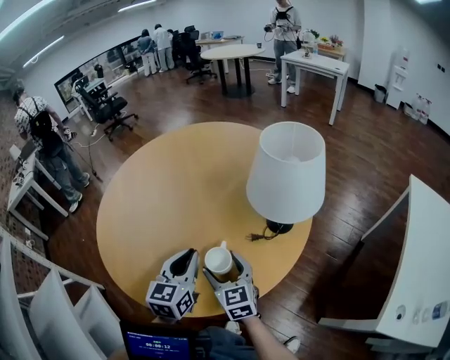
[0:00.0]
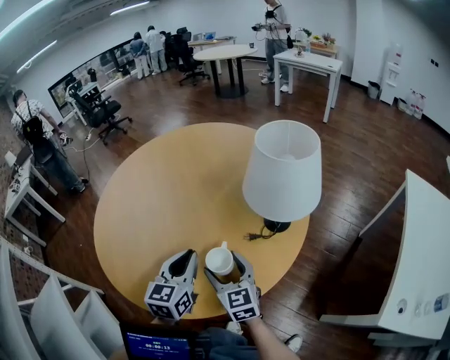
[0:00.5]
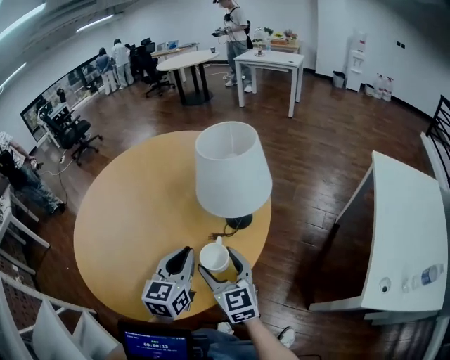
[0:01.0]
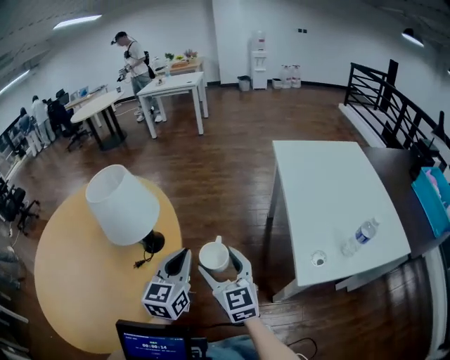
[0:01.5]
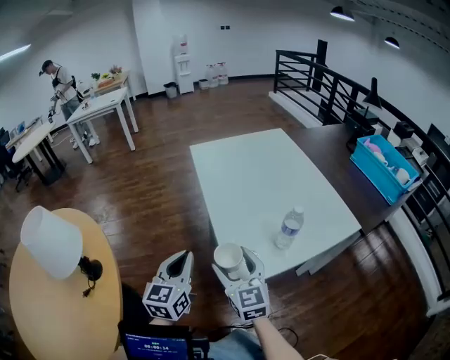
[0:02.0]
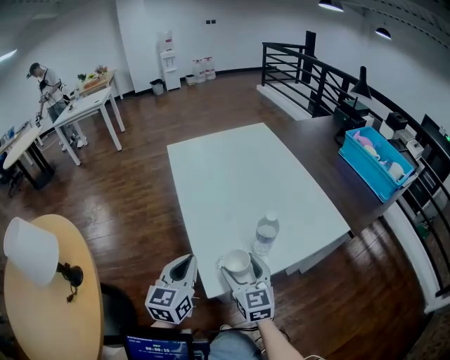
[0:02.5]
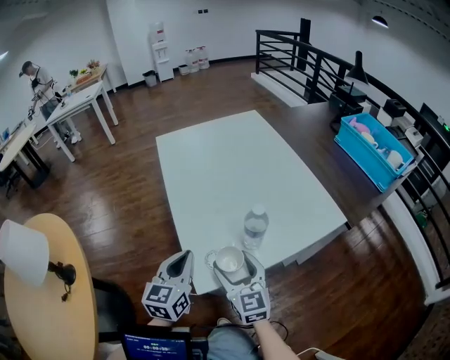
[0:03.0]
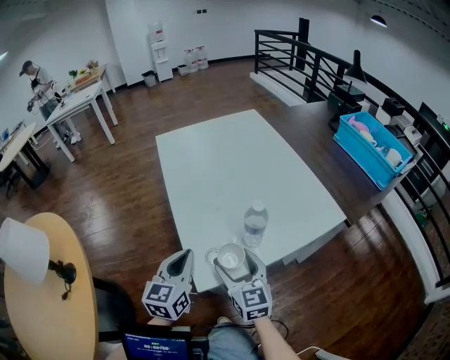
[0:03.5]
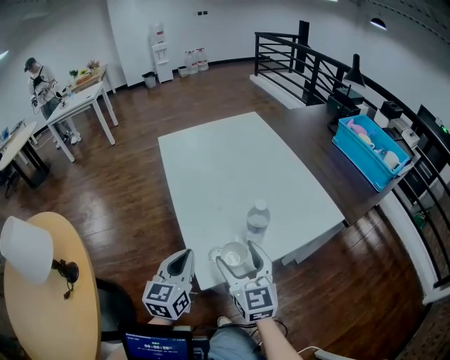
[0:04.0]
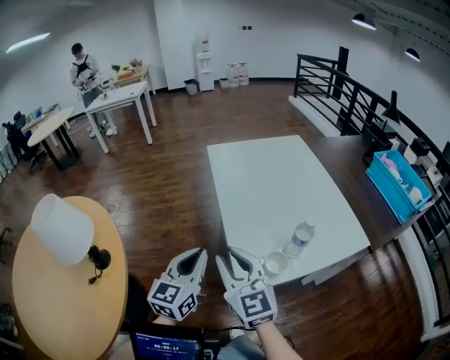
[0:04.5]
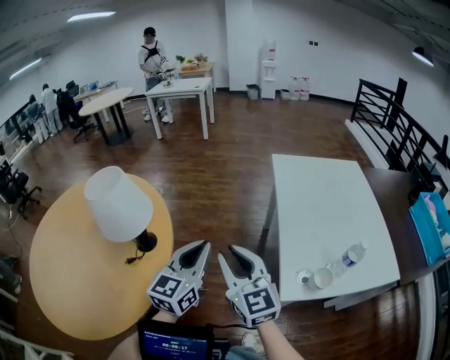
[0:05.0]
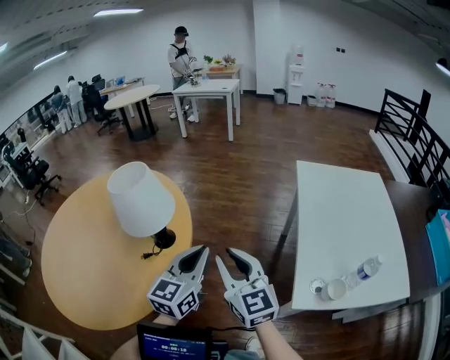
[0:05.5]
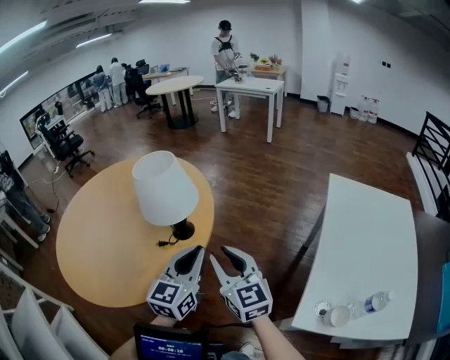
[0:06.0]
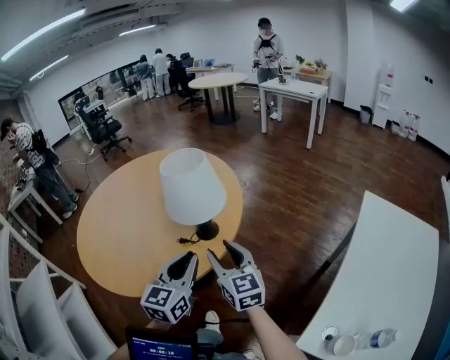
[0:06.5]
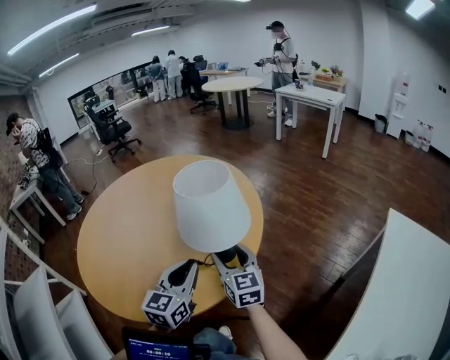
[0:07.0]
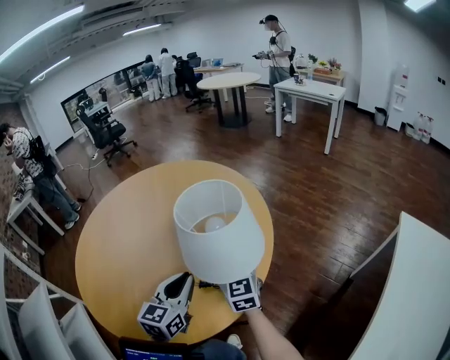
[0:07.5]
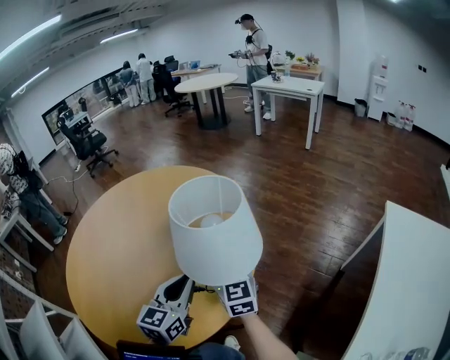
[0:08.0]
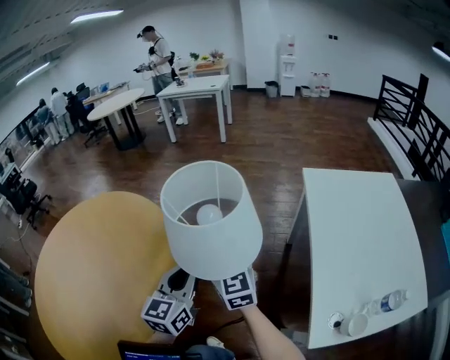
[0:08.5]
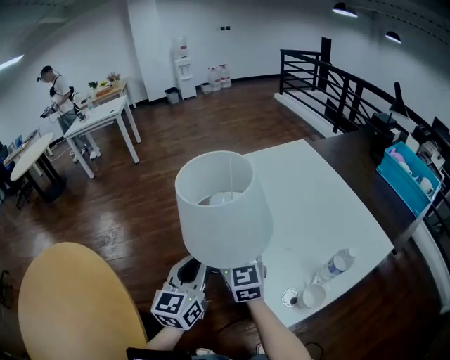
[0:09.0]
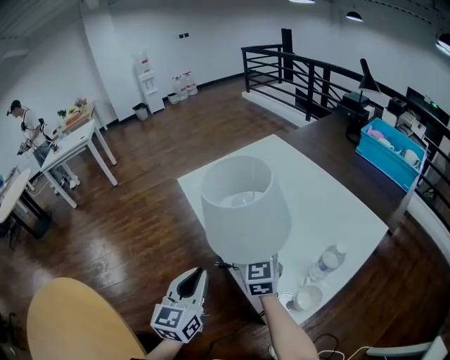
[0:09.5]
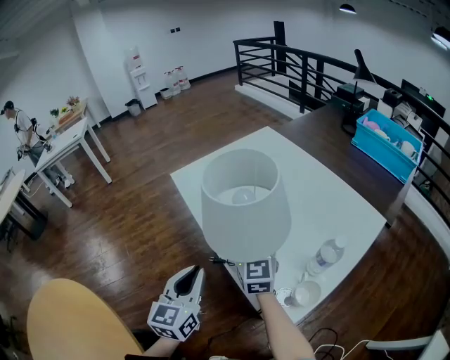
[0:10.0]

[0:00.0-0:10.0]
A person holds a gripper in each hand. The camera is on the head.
0.0 to 2.0 s: The pair of grippers is taken some 60 cm. The right gripper changes its angle by approximately 60 degrees. The left gripper rotates some 60 degrees.
2.0 to 4.0 s: Both grippers travel together to the right, approximately 10 cm.
4.0 to 6.0 s: The left gripper ends up some 40 cm from where it was, and turns by about 50 degrees, while the right gripper moves some 40 cm, swivels some 60 degrees, and closes.
6.0 to 8.0 s: The right gripper moves forward and to the left, approximately 25 cm. The left gripper goes about 20 cm forward, to the left and downward.
8.0 to 10.0 s: The two grippers travel together, some 60 cm. The left gripper swivels approximately 70 degrees; the right gripper rotates approximately 80 degrees.

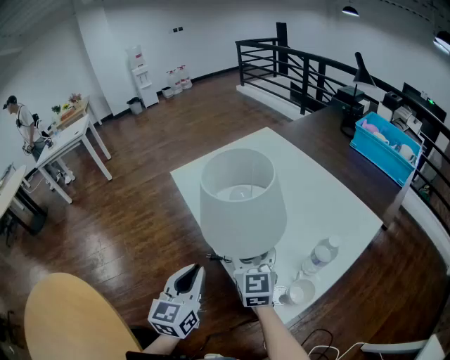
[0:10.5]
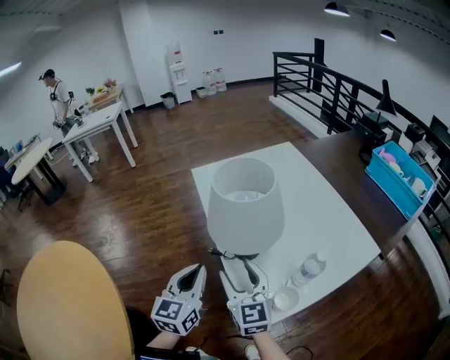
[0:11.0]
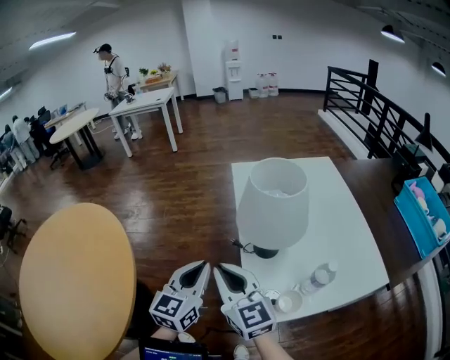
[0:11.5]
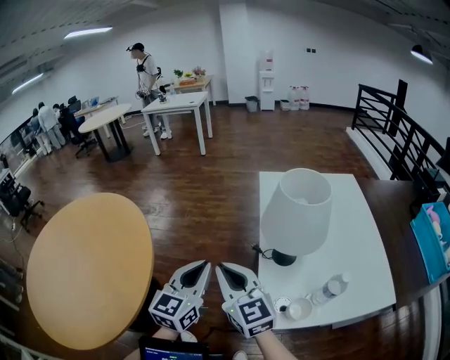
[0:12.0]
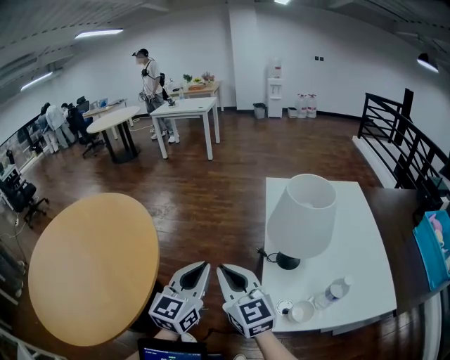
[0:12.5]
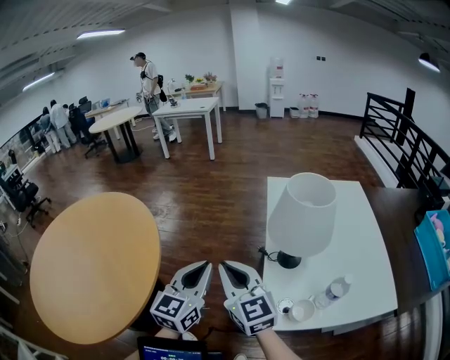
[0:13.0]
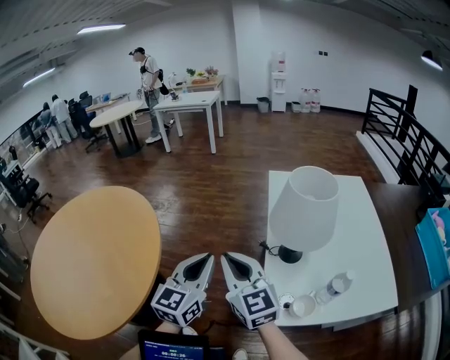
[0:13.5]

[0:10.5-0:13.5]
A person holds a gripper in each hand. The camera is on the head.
10.5 to 12.0 s: The right gripper changes place by about 25 cm, turns by approximately 60 degrees, and closes. The left gripper moves approximately 15 cm, and rotates some 30 degrees.
12.0 to 13.5 s: The grippers move only a little.

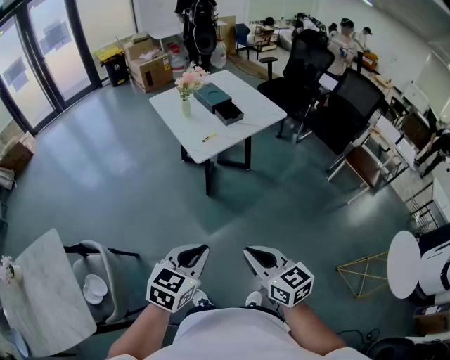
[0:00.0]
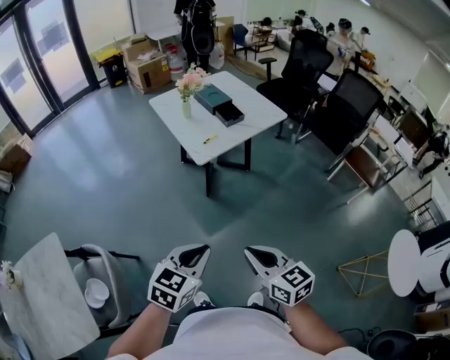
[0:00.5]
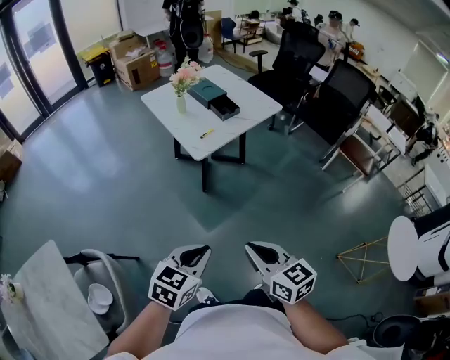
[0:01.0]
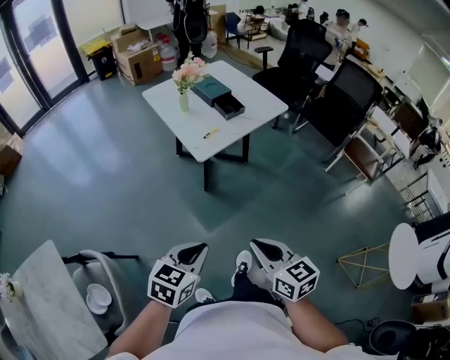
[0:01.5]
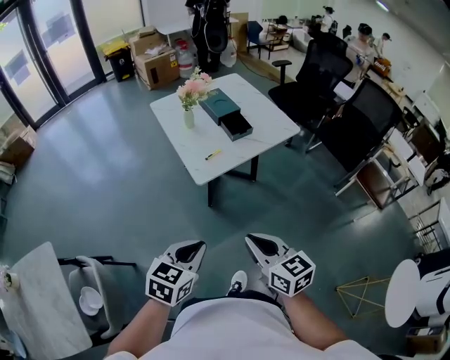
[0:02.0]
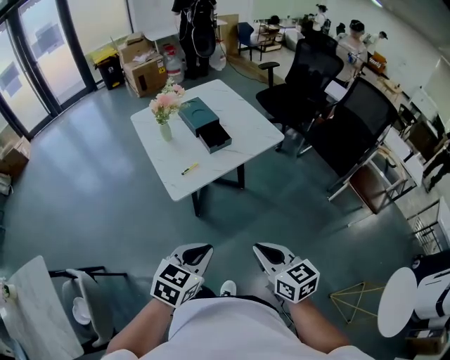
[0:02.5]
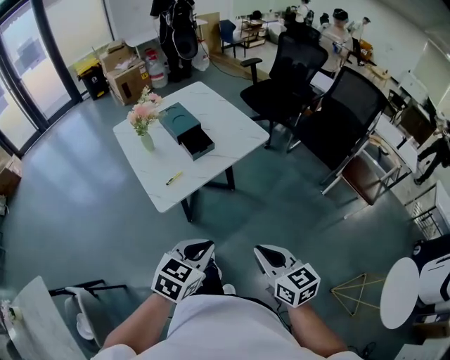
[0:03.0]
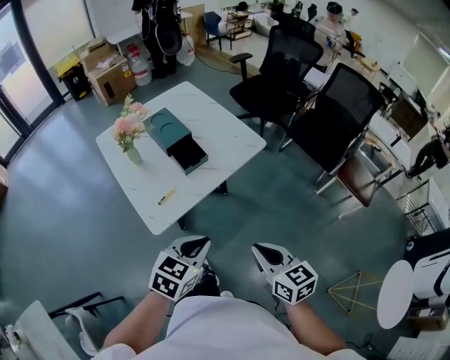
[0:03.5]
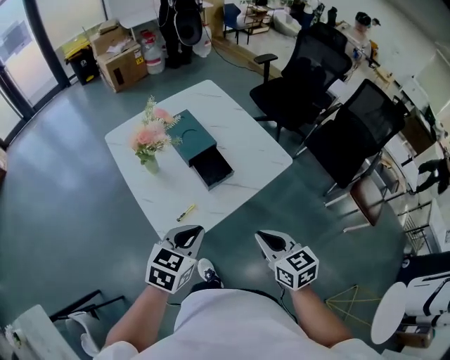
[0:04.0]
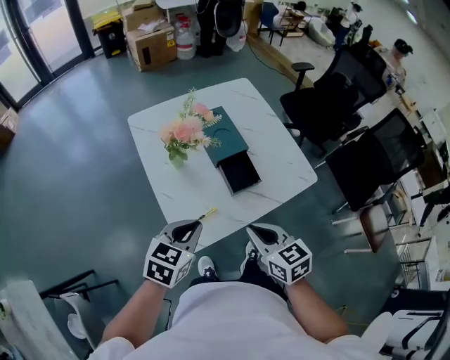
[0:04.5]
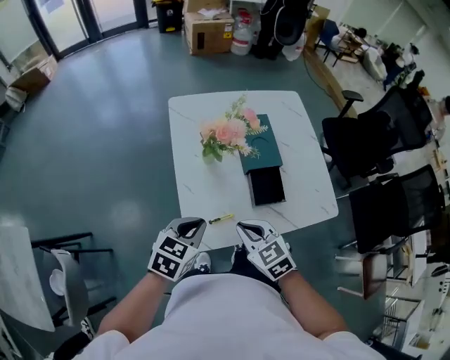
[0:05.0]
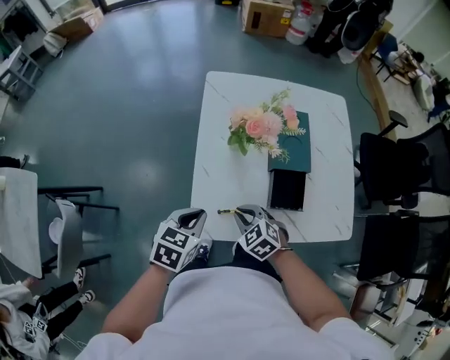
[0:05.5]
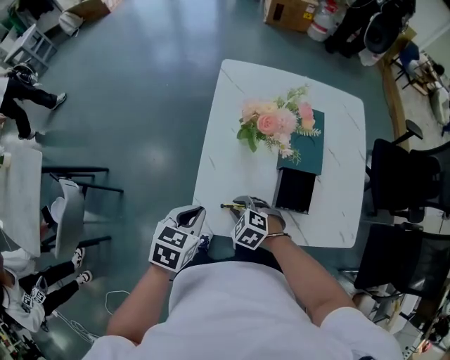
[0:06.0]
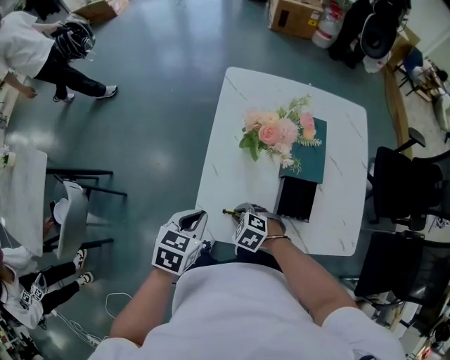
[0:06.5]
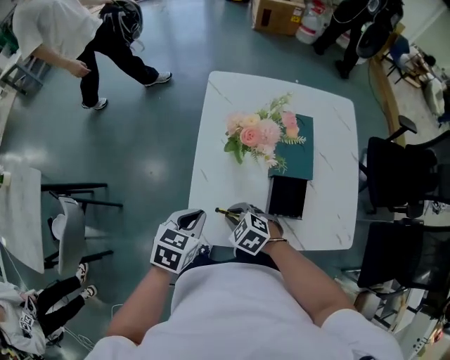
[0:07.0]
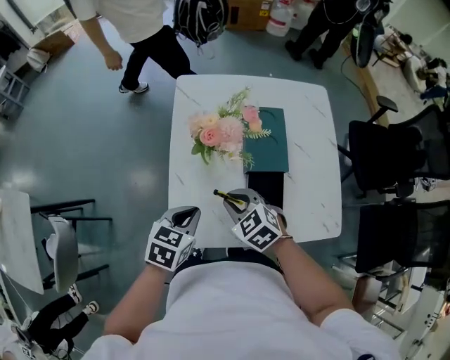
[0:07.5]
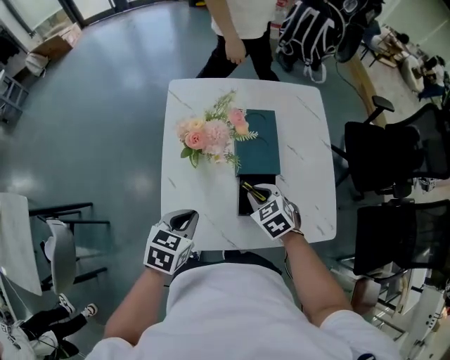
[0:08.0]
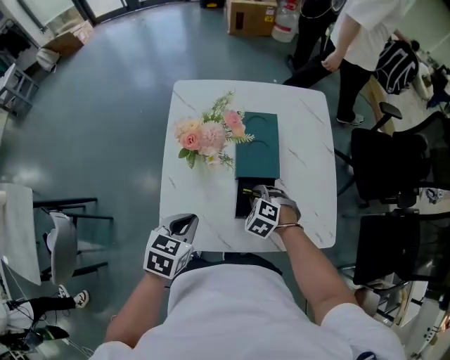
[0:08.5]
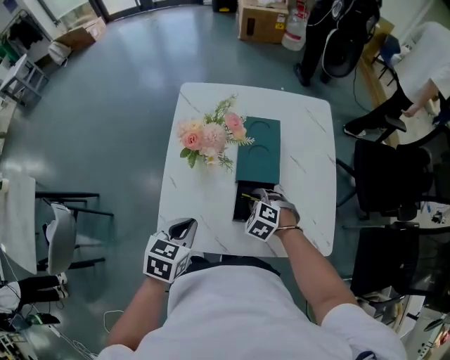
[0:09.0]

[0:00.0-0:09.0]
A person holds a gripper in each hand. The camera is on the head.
0.0 to 2.0 s: The grippers both shift forward by roughly 20 cm.
2.0 to 4.5 s: Both grippers are carried forward, some 40 cm.
4.5 to 7.0 s: The left gripper shifts about 10 cm downward, and changes its angle by approximately 40 degrees. Meanwhile the right gripper travels downward by some 15 cm, and rotates approximately 70 degrees.
7.0 to 9.0 s: The right gripper moves to the right and forward, some 20 cm, and rotates about 20 degrees. Meanwhile the left gripper is displaced to the right by some 10 cm.

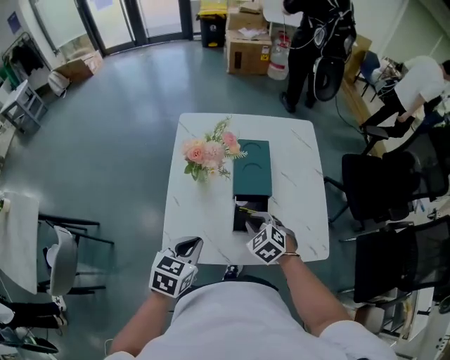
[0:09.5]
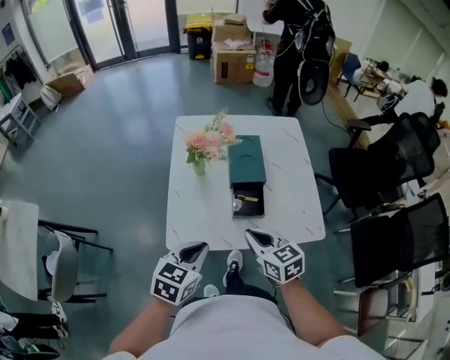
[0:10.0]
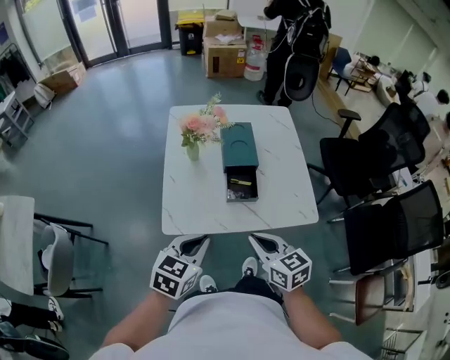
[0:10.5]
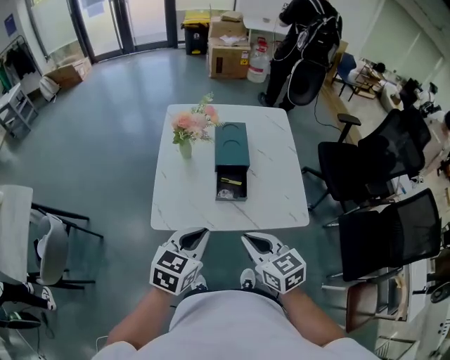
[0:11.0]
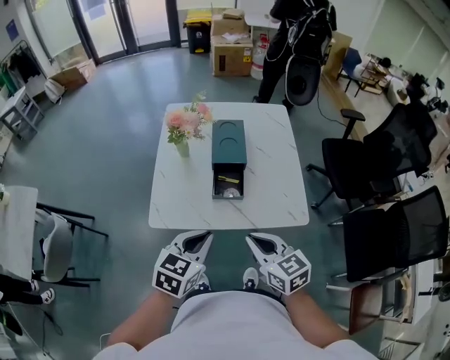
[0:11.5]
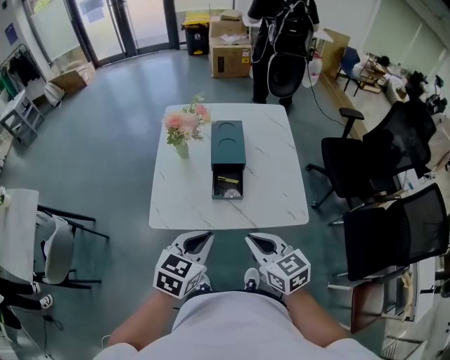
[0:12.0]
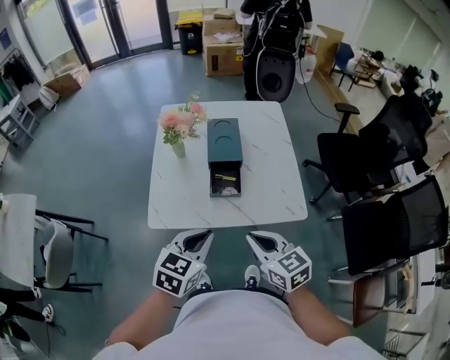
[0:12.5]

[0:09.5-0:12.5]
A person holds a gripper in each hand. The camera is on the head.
9.5 to 11.0 s: The left gripper is displaced backward, to the right and upward by approximately 15 cm. The right gripper heads backward and upward, covering some 25 cm, and changes its angle by about 40 degrees.
11.0 to 12.5 s: There are only small adjustments of the grippers.

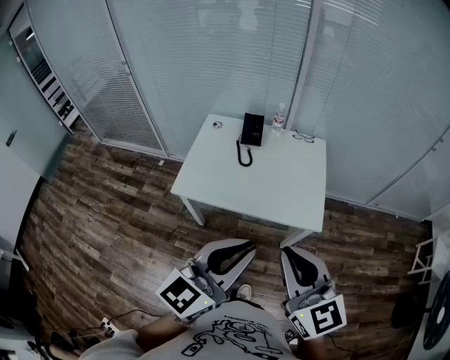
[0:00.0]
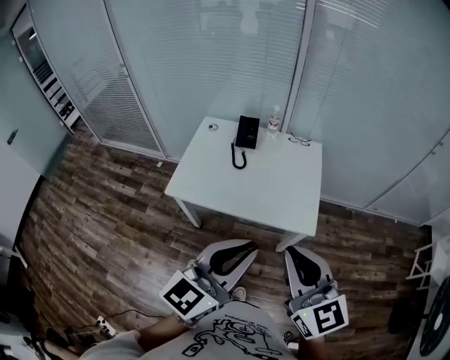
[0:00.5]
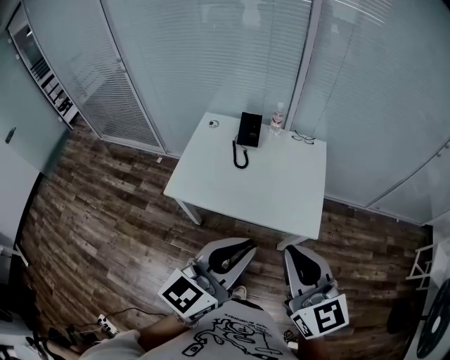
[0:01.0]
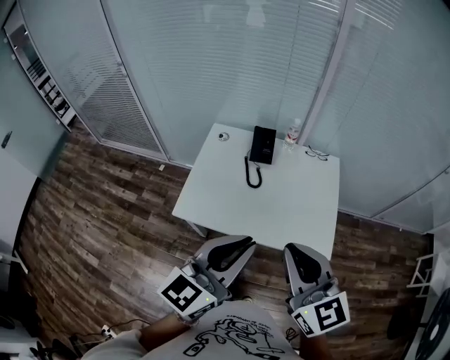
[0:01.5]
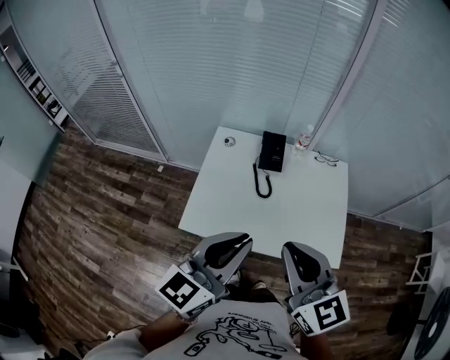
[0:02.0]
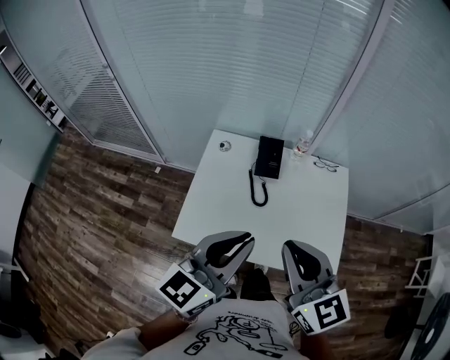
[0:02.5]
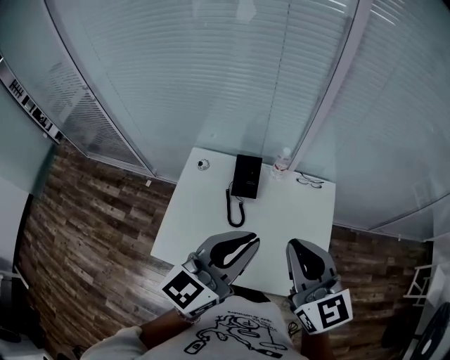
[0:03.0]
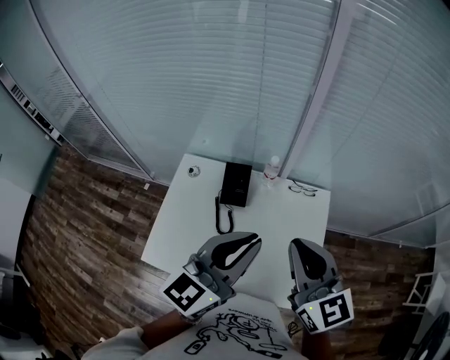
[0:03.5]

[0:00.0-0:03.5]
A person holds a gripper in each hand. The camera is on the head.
0.0 to 2.0 s: Both grippers move forward and to the left, roughly 25 cm.
2.0 to 3.5 s: The grippers both shift forward and to the right by approximately 30 cm.
